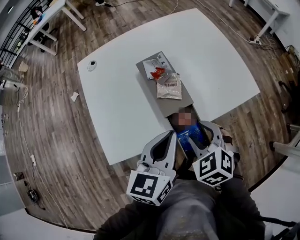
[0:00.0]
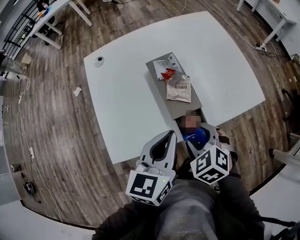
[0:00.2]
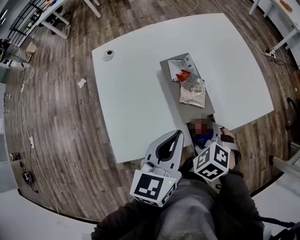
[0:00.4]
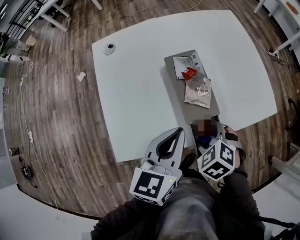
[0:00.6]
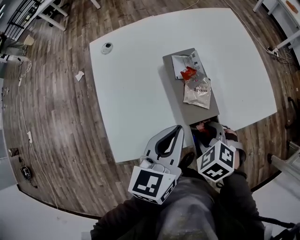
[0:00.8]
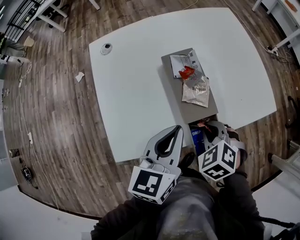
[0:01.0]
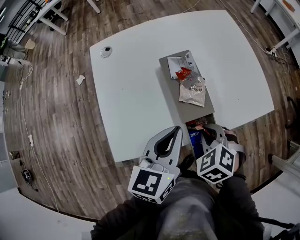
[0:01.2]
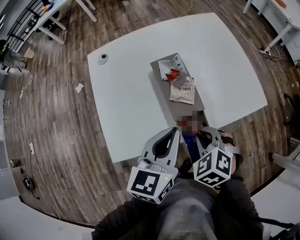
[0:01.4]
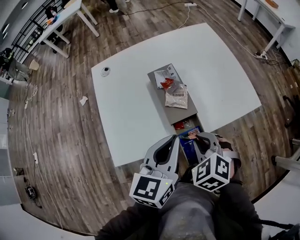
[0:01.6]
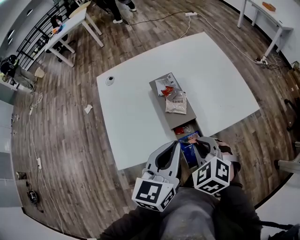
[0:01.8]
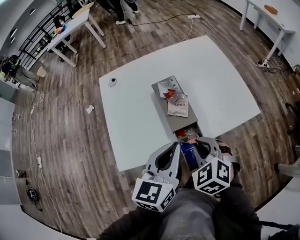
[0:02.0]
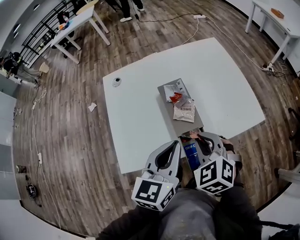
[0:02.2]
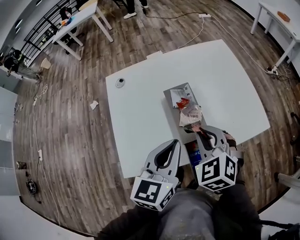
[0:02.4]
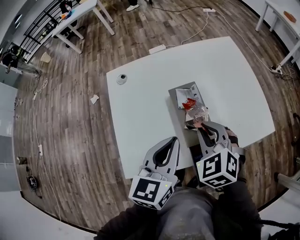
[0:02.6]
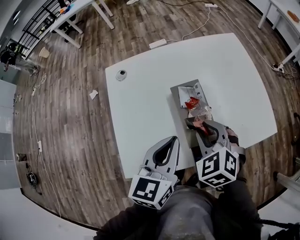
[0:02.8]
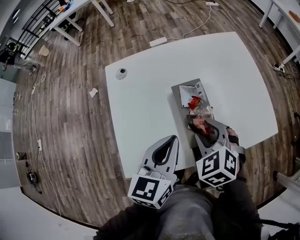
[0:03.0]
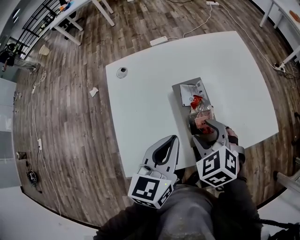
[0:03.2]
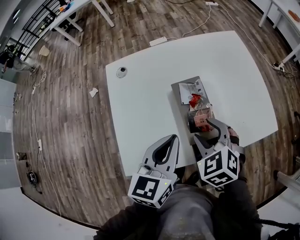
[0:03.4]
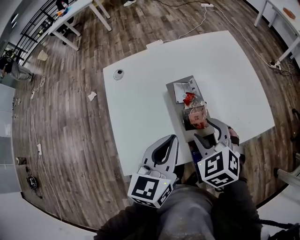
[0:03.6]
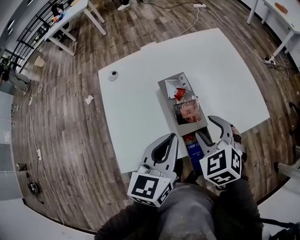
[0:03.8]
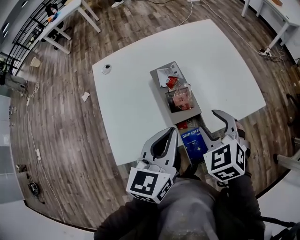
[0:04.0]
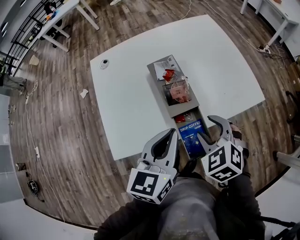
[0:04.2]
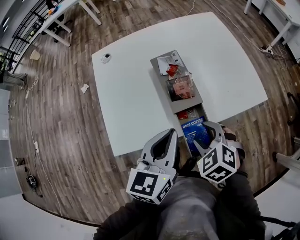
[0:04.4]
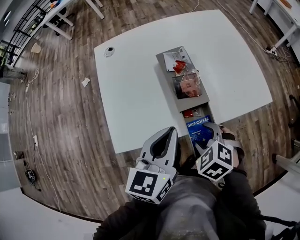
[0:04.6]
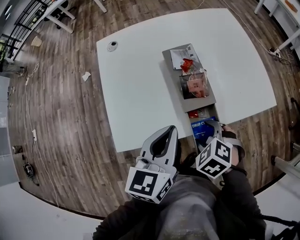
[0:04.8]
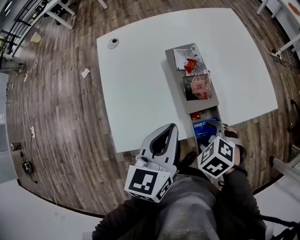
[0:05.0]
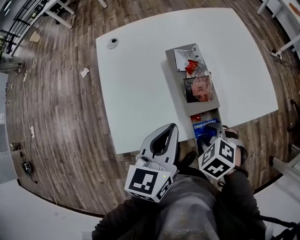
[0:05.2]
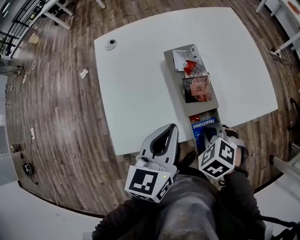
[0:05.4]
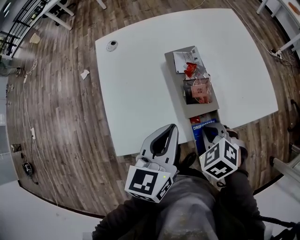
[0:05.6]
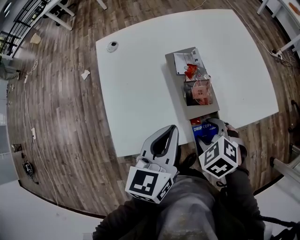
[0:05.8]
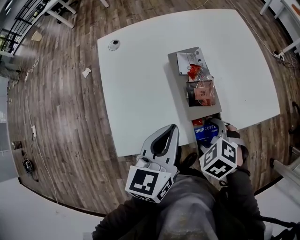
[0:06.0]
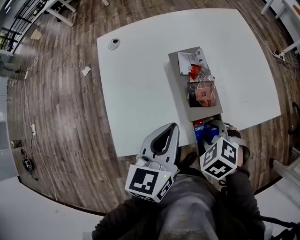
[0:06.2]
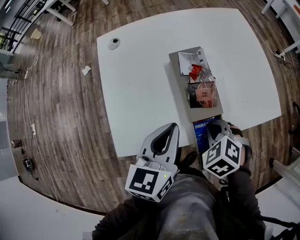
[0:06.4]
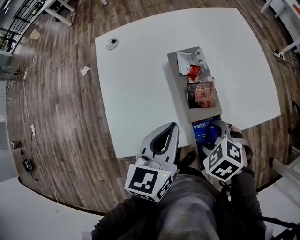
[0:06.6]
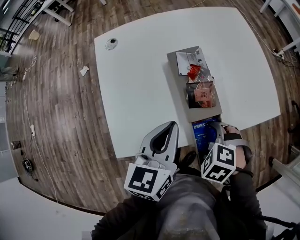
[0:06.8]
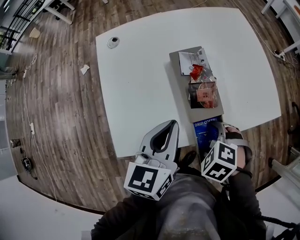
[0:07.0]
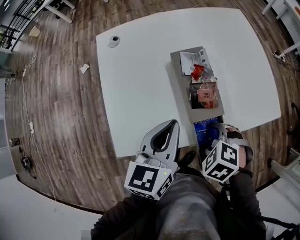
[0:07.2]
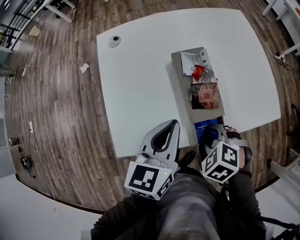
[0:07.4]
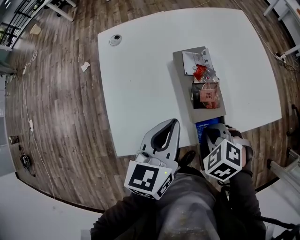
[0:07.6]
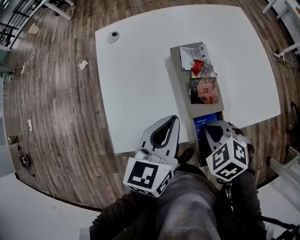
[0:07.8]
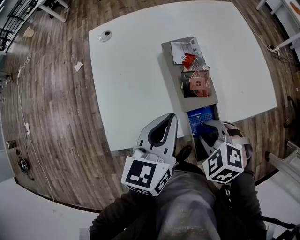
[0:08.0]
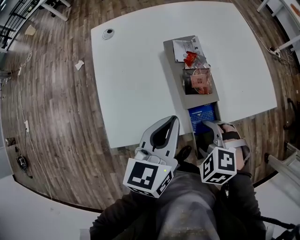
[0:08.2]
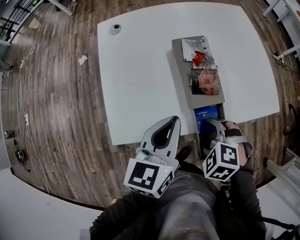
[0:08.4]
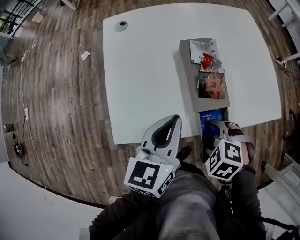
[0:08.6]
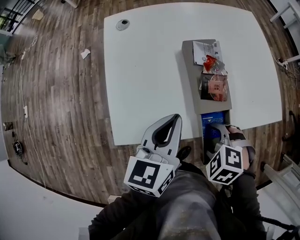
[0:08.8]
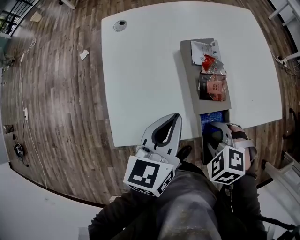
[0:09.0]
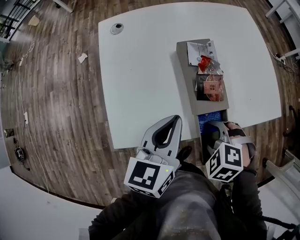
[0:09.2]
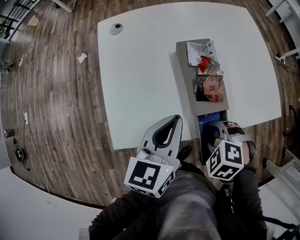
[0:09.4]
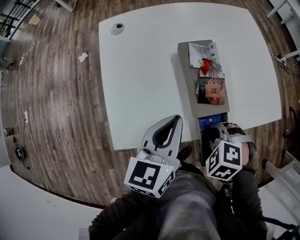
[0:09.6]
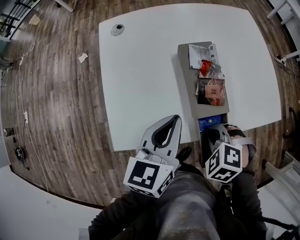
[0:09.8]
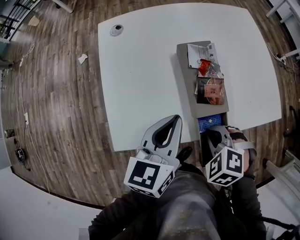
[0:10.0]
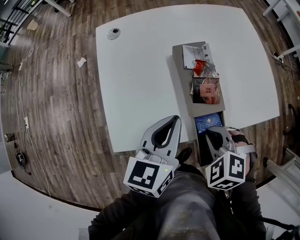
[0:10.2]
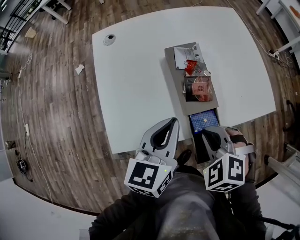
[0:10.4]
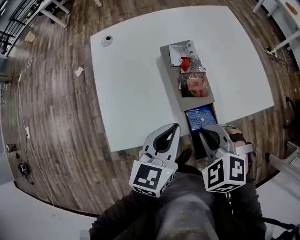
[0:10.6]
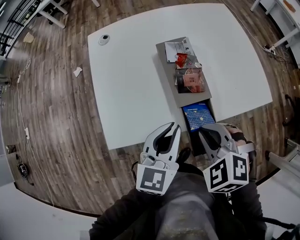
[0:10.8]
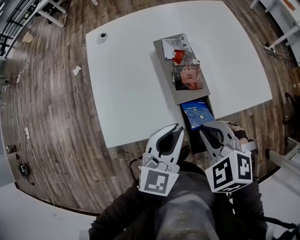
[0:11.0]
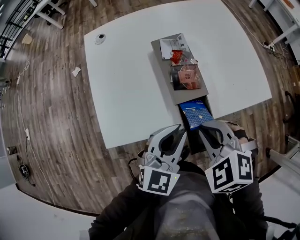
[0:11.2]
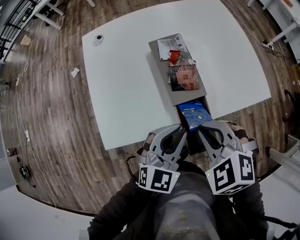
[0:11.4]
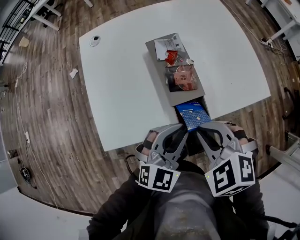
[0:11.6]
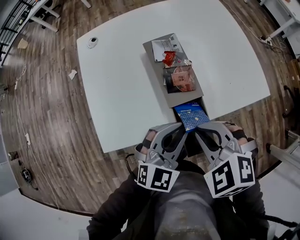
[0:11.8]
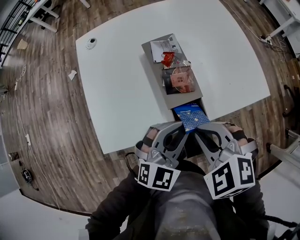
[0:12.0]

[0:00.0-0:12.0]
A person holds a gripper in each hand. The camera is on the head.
0:00.0 to 0:01.6: The right gripper closes up.
0:01.6 to 0:03.0: Both grippers travel together forward and to the left, roughly 10 cm. The right gripper opens its fingers.
0:03.0 to 0:04.4: The right gripper heads backward, covering roughly 15 cm. The left gripper heads backward and to the right, covering approximately 10 cm.
0:04.4 to 0:06.0: The right gripper changes place by approximately 5 cm, and closes, then opens again; the left gripper shifts by approximately 5 cm.
0:06.0 to 0:07.6: The right gripper closes its fingers.
0:07.6 to 0:09.0: The right gripper opens.
0:09.0 to 0:10.4: The right gripper travels upward by about 5 cm, and closes.
0:10.4 to 0:12.0: The left gripper moves to the right and backward, some 10 cm, and twists some 50 degrees clockwise, seen from behind.

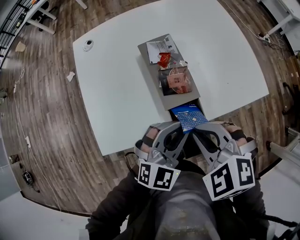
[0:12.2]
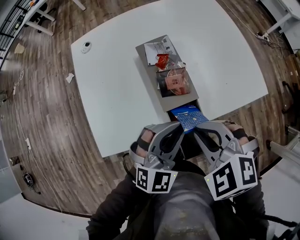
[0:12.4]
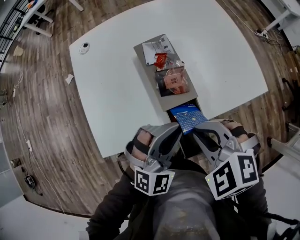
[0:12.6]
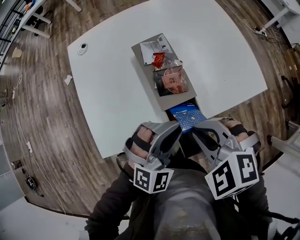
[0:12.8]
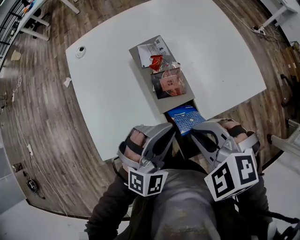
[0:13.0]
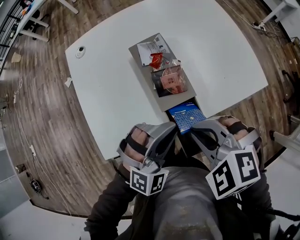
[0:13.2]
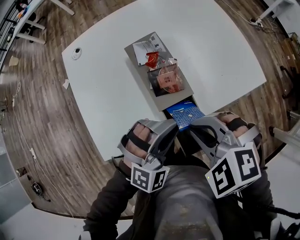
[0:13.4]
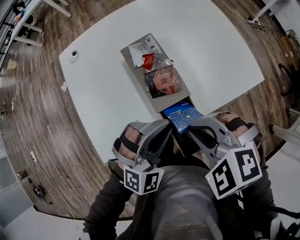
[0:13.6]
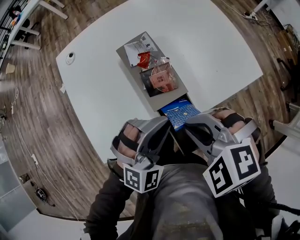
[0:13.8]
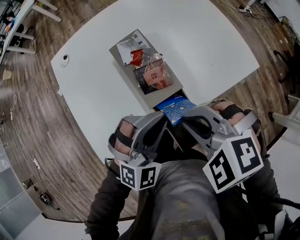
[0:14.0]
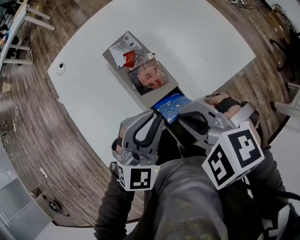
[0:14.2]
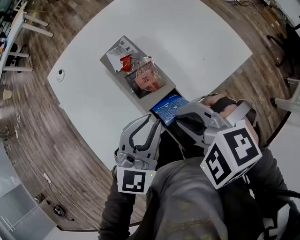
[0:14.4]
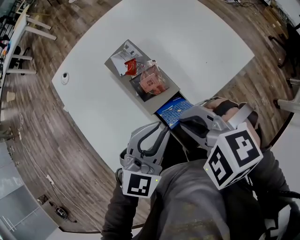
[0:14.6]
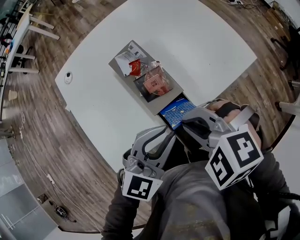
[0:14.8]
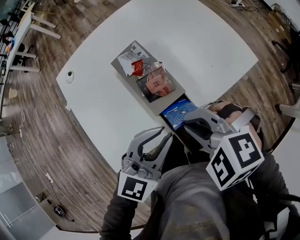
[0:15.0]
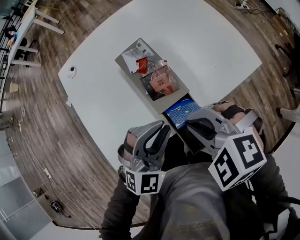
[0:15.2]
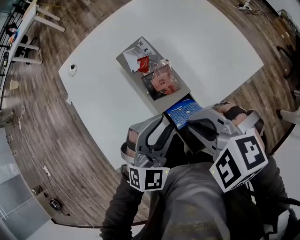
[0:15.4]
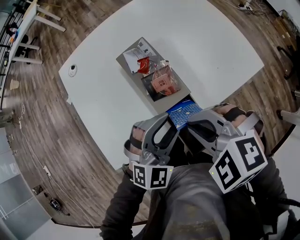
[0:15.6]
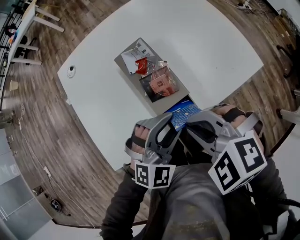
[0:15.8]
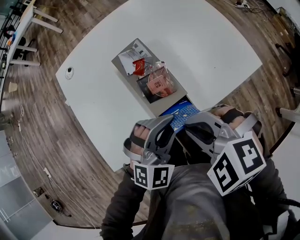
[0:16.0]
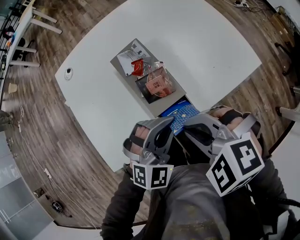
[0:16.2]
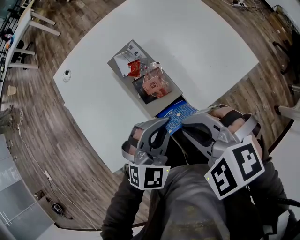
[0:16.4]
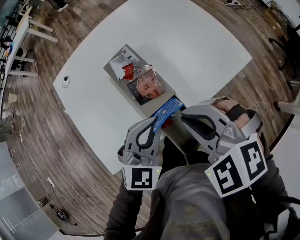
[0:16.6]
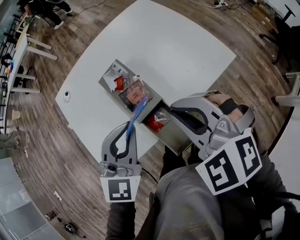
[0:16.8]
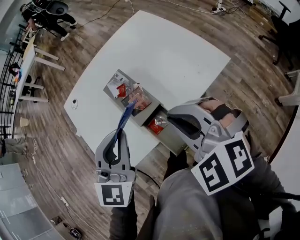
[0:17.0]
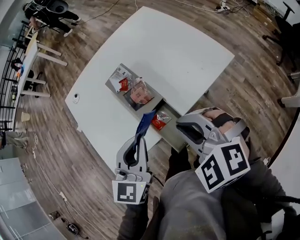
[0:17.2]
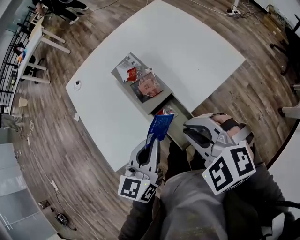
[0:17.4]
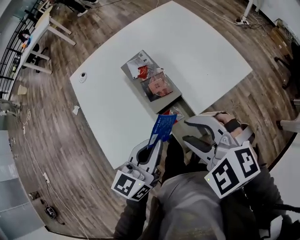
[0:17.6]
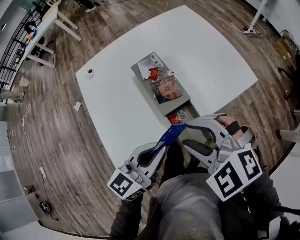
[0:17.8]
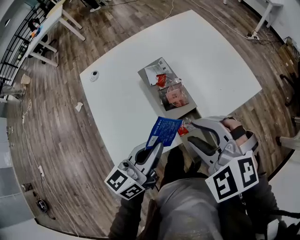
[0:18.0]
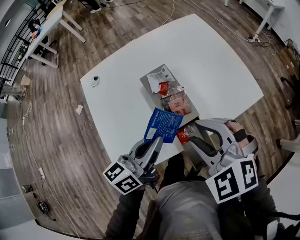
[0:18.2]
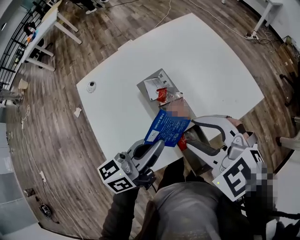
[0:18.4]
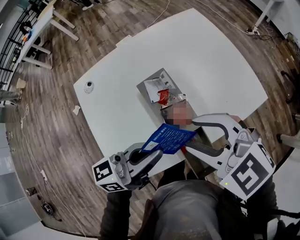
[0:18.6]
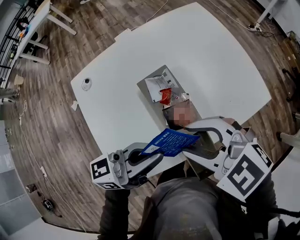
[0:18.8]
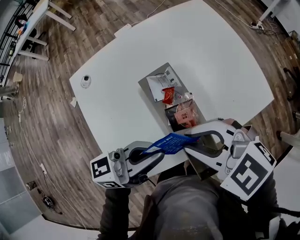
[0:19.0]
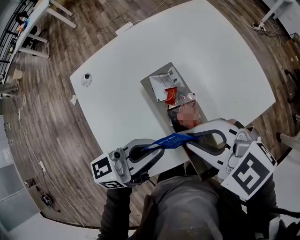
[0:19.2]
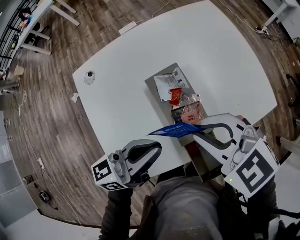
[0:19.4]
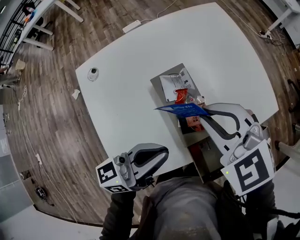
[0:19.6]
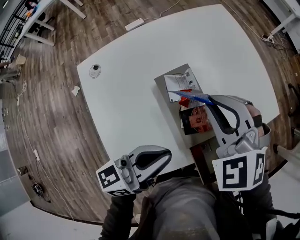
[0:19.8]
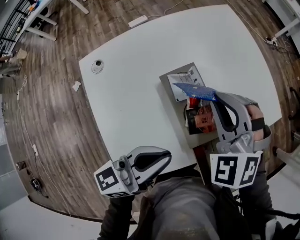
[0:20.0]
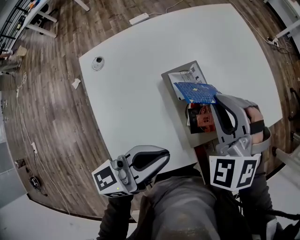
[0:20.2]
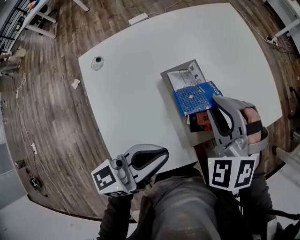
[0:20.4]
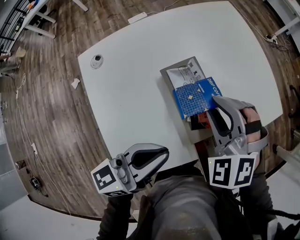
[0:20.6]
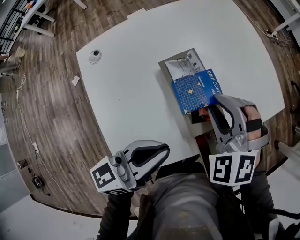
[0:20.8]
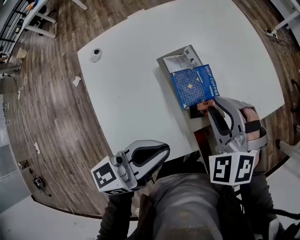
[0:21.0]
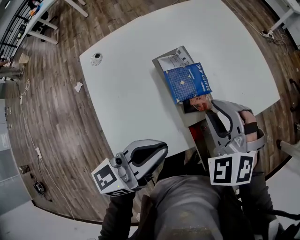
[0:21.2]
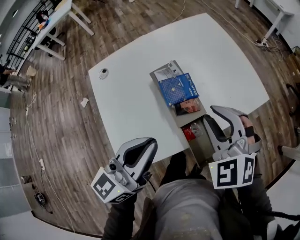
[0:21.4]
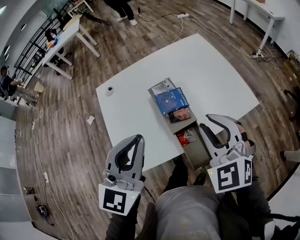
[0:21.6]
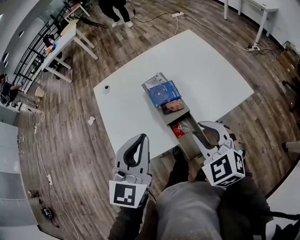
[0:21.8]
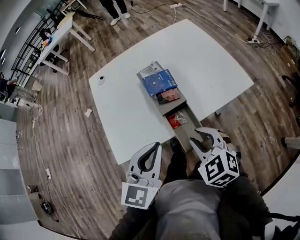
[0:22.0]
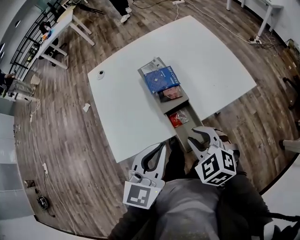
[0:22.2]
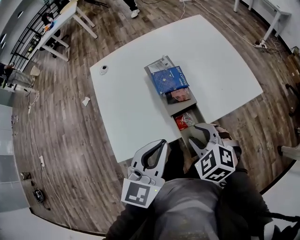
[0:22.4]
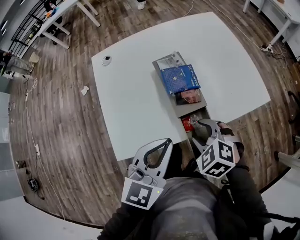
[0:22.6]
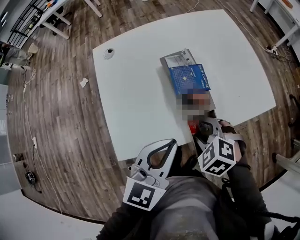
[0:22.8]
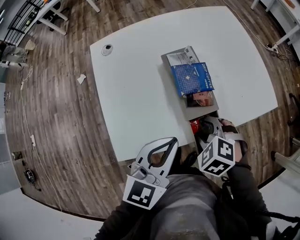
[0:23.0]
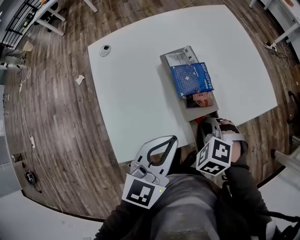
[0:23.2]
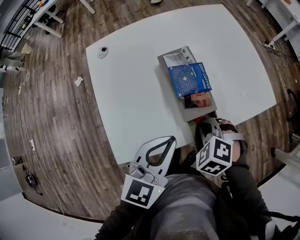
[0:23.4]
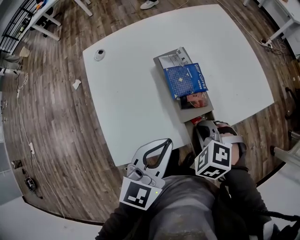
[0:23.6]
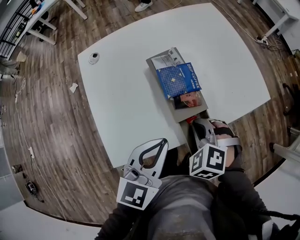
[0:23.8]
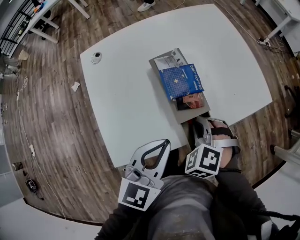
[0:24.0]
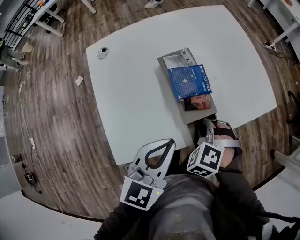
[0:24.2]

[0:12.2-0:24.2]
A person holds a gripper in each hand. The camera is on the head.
0:12.2 to 0:13.8: The left gripper swivels about 30 degrees.
0:15.2 to 0:16.6: The left gripper opens and closes again.
0:16.6 to 0:18.2: The right gripper opens up, while the left gripper goes some 10 cm to the left, goes upward and returns, about 10 cm each way, and rolls counterclockwise, seen from behind, by approximately 60 degrees.
0:18.2 to 0:19.8: The right gripper ends up some 15 cm from where it was, and closes up.
0:19.8 to 0:21.2: The right gripper heads backward, covering about 5 cm.
0:21.2 to 0:22.6: The right gripper shifts approximately 15 cm backward and downward, and rotates roughly 30 degrees. Meanwhile the left gripper reaches roughly 15 cm upward, then returns, and changes its angle by about 50 degrees.
0:22.6 to 0:24.2: The right gripper changes place by about 5 cm, turns by roughly 20 degrees, and closes its fingers.
